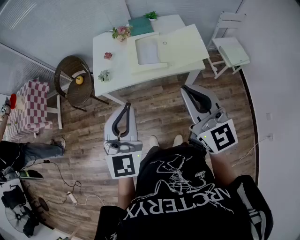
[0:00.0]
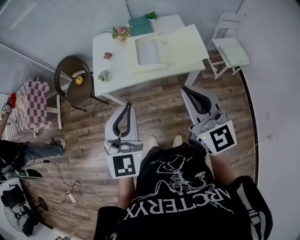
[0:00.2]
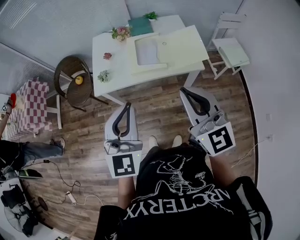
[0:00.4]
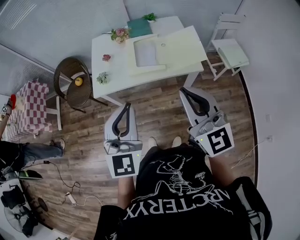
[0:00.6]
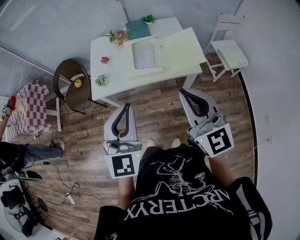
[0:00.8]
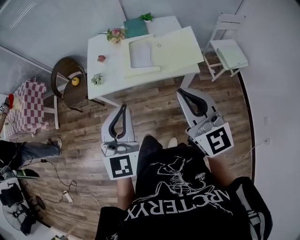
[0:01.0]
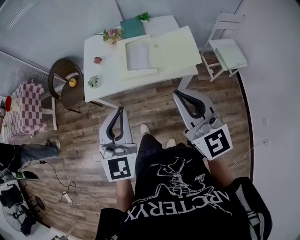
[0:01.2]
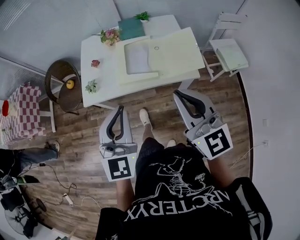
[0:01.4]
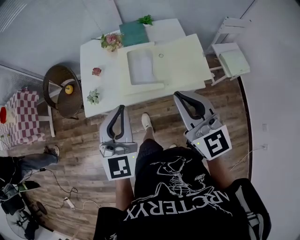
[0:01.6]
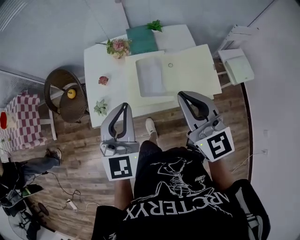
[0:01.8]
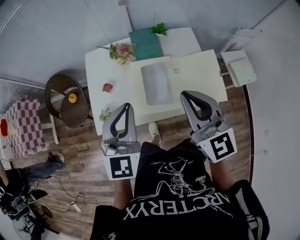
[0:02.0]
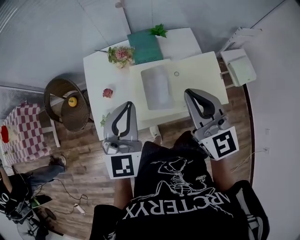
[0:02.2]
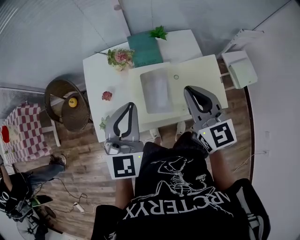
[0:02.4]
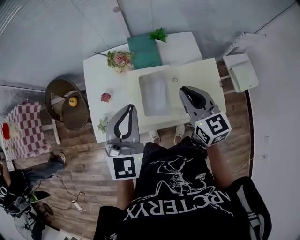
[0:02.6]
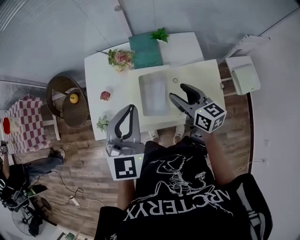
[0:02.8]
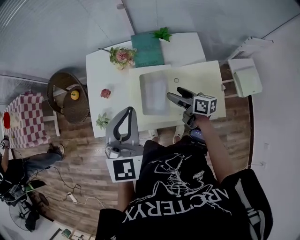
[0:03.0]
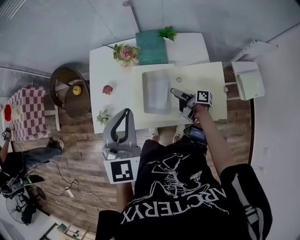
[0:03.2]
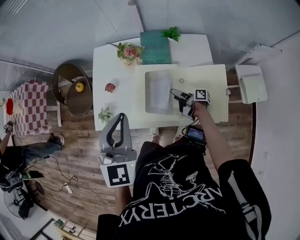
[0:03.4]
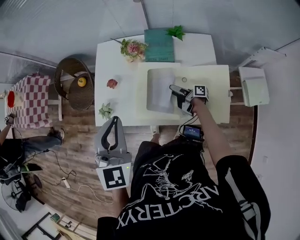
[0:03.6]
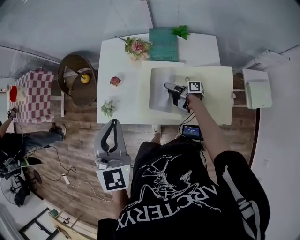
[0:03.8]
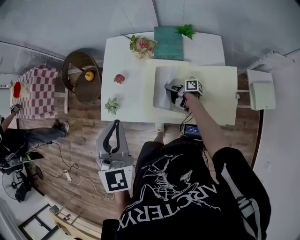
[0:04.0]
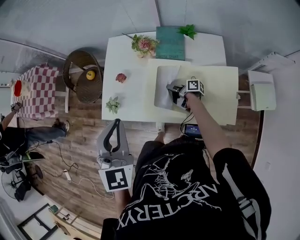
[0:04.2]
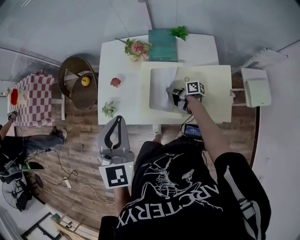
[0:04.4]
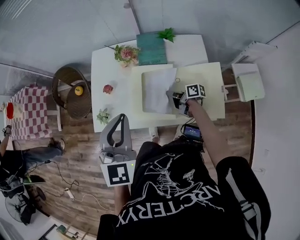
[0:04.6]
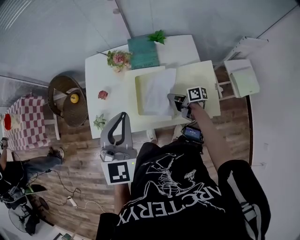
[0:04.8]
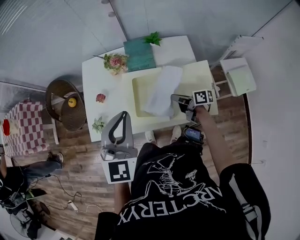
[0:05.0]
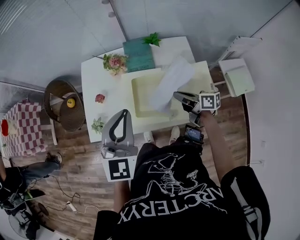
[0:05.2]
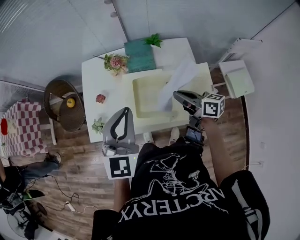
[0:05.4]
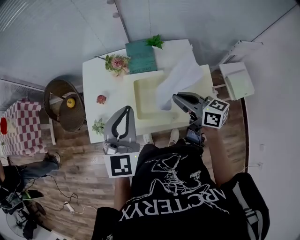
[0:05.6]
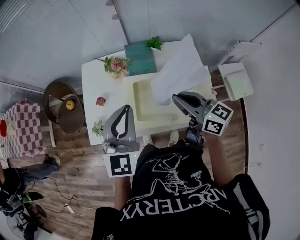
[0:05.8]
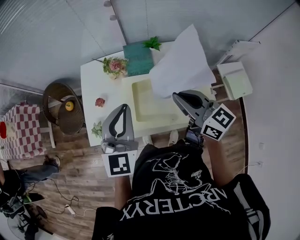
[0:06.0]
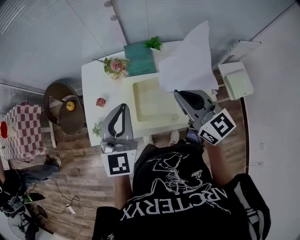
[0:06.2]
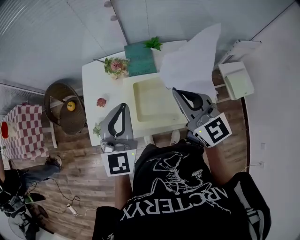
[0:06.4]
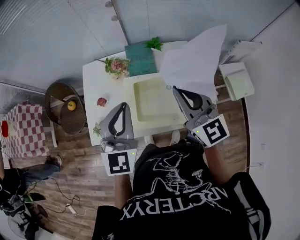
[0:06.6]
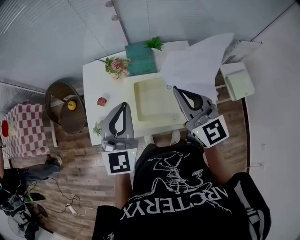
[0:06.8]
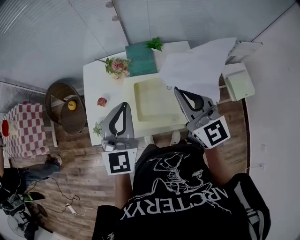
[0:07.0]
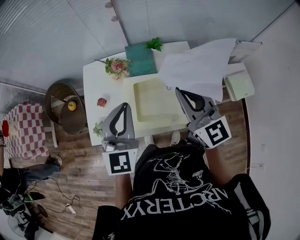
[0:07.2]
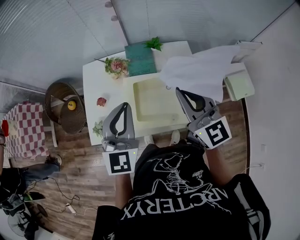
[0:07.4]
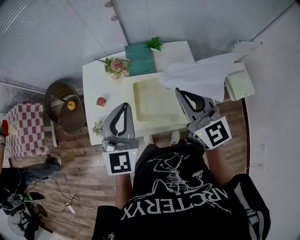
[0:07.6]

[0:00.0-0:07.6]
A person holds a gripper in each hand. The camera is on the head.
0:00.0 to 0:01.6: Both grippers travel together forward, about 15 cm.
0:01.6 to 0:03.0: The right gripper goes roughly 35 cm forward and downward, rotates around the line of its fingers by roughly 60 degrees, clockwise from behind, and opens. The left gripper heads forward, covering roughly 20 cm.
0:03.0 to 0:04.6: The right gripper goes some 10 cm downward, rotates approximately 30 degrees, and closes its fingers.
0:04.6 to 0:06.0: The left gripper changes place by approximately 5 cm, while the right gripper shifts approximately 35 cm upward, and twists roughly 60 degrees counterclockwise, seen from behind.
0:06.0 to 0:07.6: The right gripper turns by approximately 30 degrees.

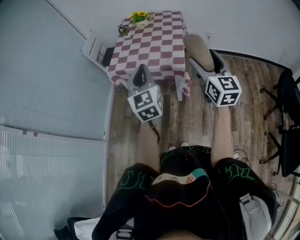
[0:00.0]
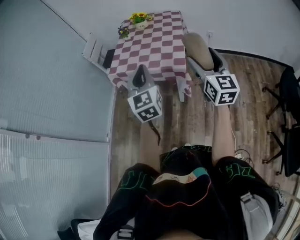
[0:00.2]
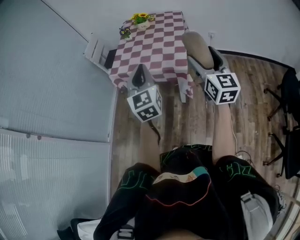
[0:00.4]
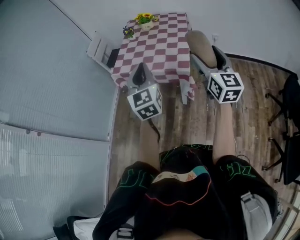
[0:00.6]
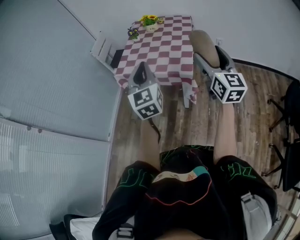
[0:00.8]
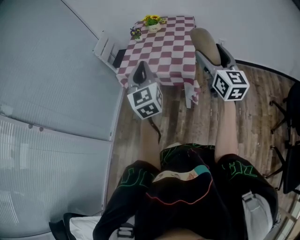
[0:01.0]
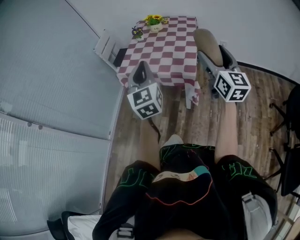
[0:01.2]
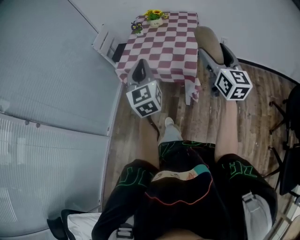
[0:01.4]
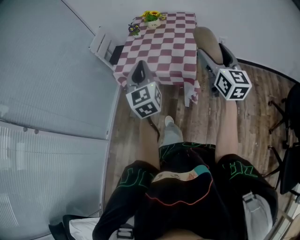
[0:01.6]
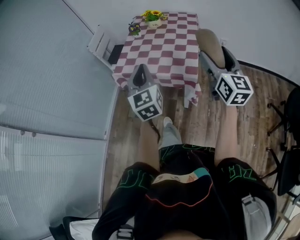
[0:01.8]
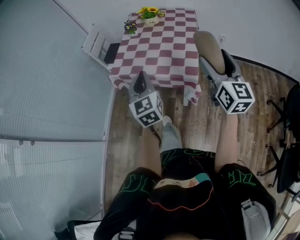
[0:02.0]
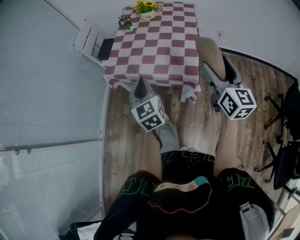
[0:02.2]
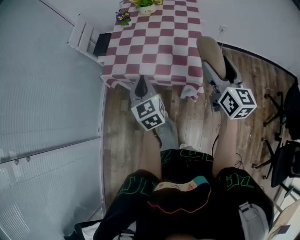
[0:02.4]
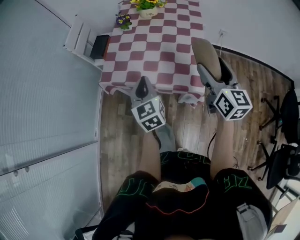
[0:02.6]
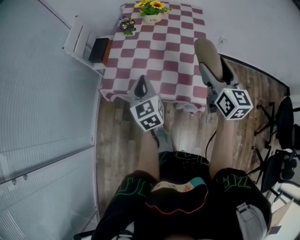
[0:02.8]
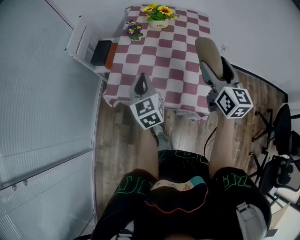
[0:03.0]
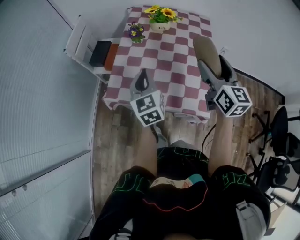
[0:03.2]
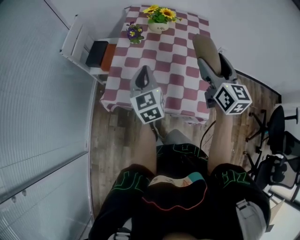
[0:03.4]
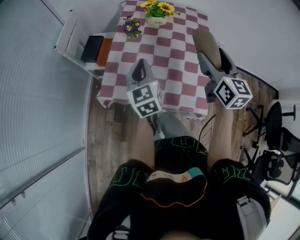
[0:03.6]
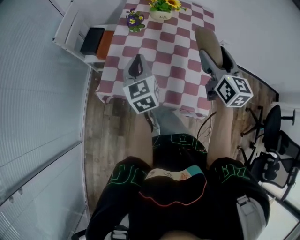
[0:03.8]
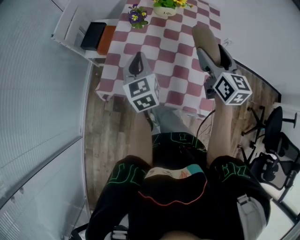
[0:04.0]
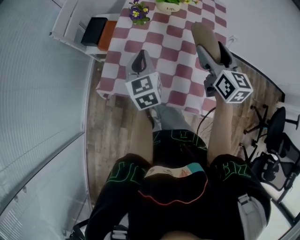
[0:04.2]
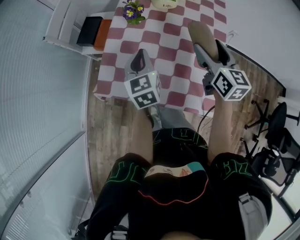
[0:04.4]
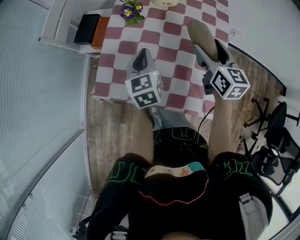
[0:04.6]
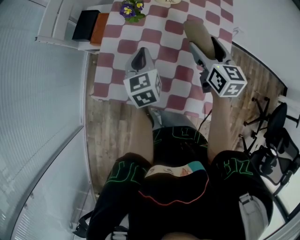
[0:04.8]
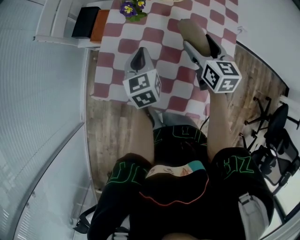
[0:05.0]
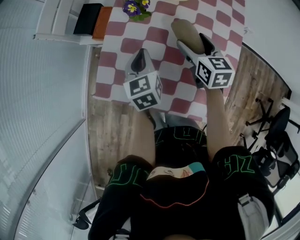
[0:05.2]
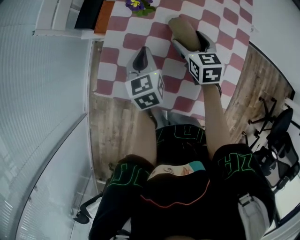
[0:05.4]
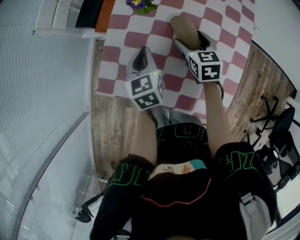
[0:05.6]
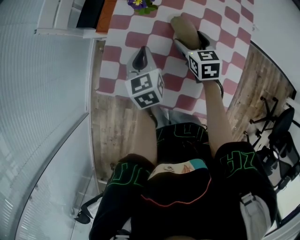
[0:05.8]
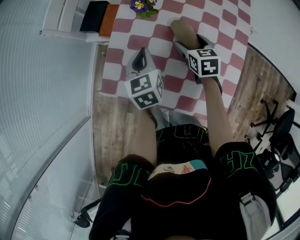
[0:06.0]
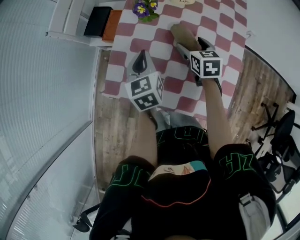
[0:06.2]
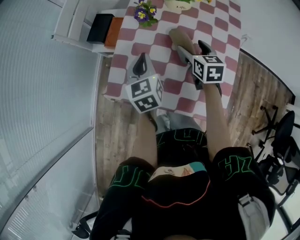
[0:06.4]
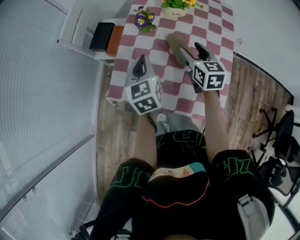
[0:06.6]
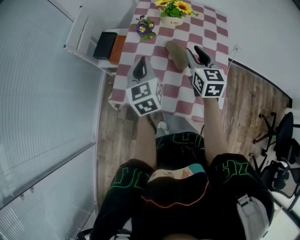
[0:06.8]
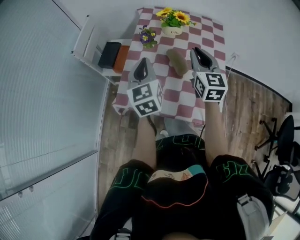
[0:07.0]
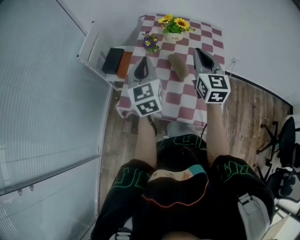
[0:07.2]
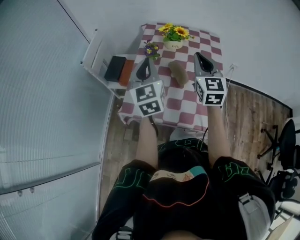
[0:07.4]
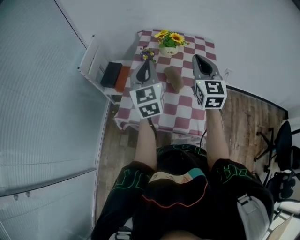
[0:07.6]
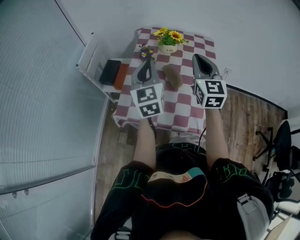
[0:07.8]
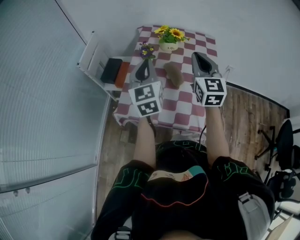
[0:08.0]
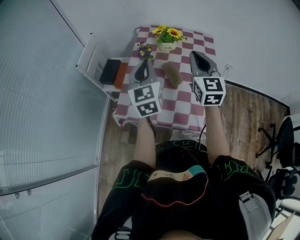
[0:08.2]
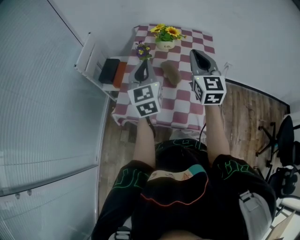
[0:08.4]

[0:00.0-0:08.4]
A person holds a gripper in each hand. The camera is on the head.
0:00.0 to 0:01.4: The right gripper heads forward, covering about 5 cm. The left gripper moves some 5 cm.
0:01.4 to 0:02.8: The right gripper heads forward, covering approximately 25 cm; the left gripper goes about 30 cm forward and downward, and changes its angle by about 20 degrees.
0:02.8 to 0:04.2: Both grippers travel together forward, approximately 15 cm.
0:04.2 to 0:05.6: The right gripper is displaced downward and forward by roughly 25 cm, and changes its angle by about 30 degrees, while the left gripper goes approximately 10 cm downward.
0:05.6 to 0:07.0: The two grippers go some 20 cm upward. The right gripper tips its fingers upward by roughly 30 degrees, and closes its fingers, while the left gripper swivels roughly 20 degrees.
0:07.0 to 0:08.4: The grippers both shift upward by some 5 cm.

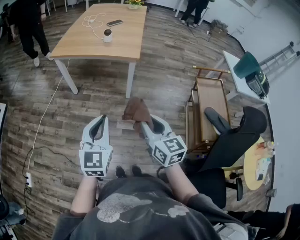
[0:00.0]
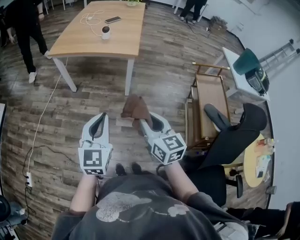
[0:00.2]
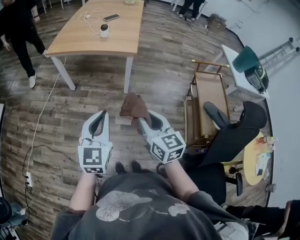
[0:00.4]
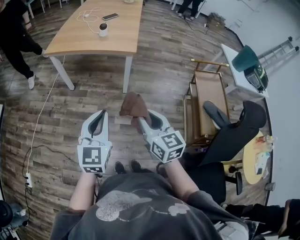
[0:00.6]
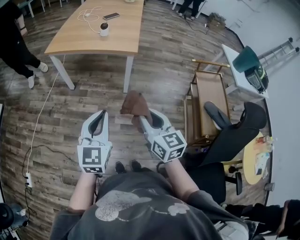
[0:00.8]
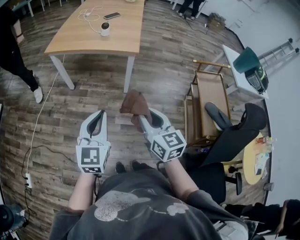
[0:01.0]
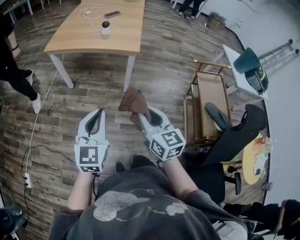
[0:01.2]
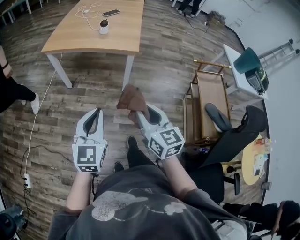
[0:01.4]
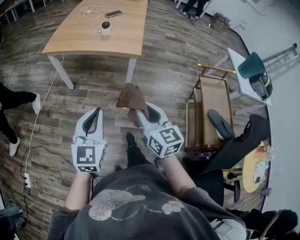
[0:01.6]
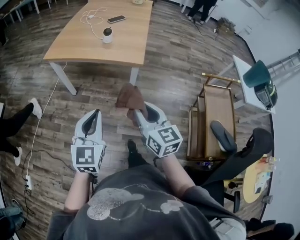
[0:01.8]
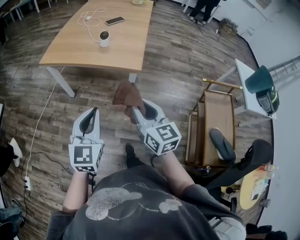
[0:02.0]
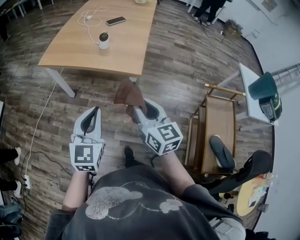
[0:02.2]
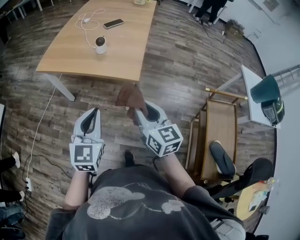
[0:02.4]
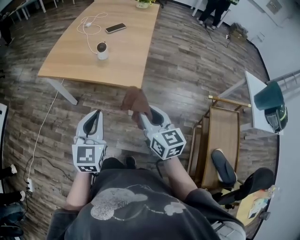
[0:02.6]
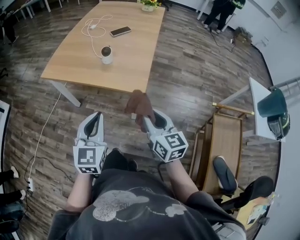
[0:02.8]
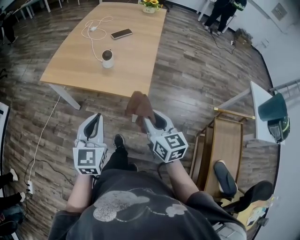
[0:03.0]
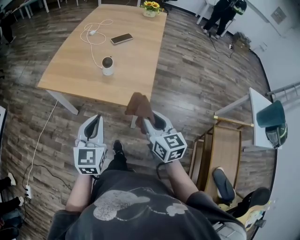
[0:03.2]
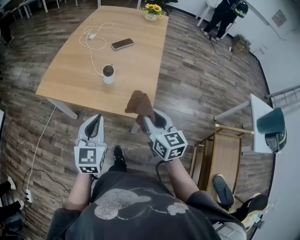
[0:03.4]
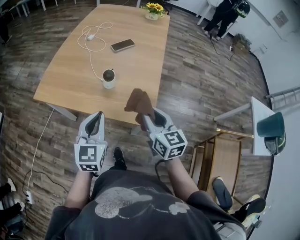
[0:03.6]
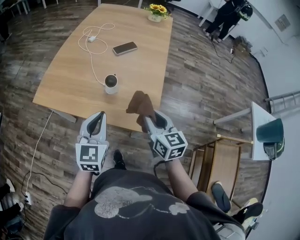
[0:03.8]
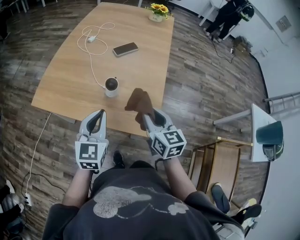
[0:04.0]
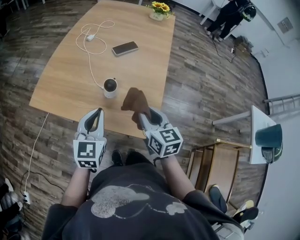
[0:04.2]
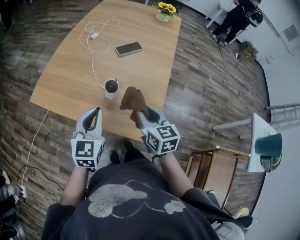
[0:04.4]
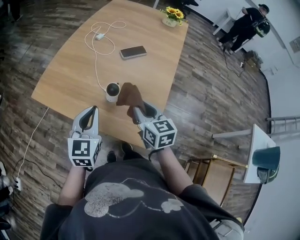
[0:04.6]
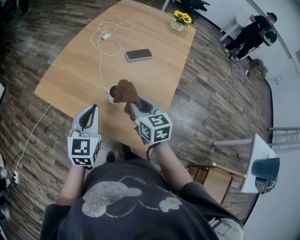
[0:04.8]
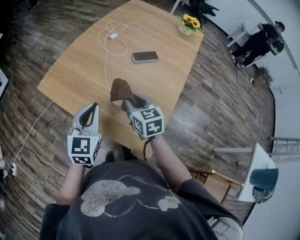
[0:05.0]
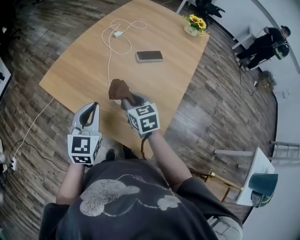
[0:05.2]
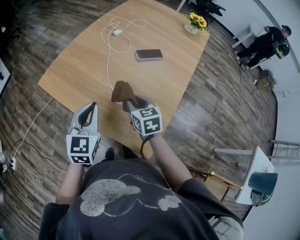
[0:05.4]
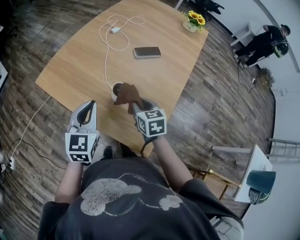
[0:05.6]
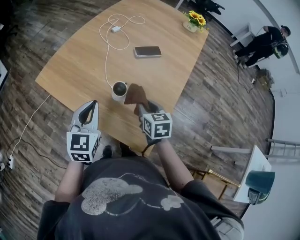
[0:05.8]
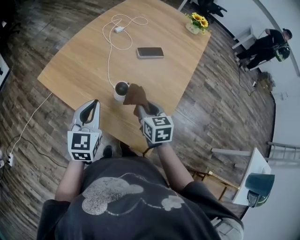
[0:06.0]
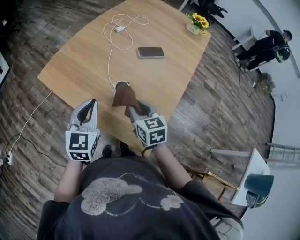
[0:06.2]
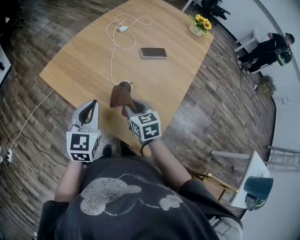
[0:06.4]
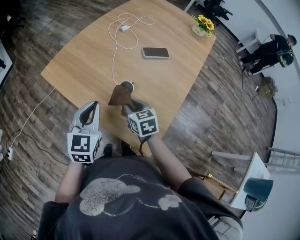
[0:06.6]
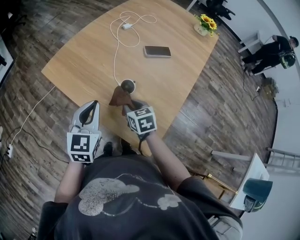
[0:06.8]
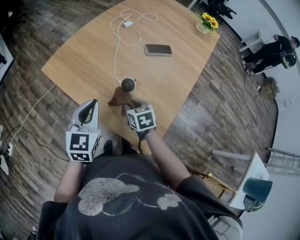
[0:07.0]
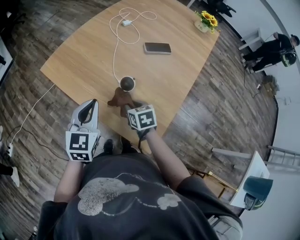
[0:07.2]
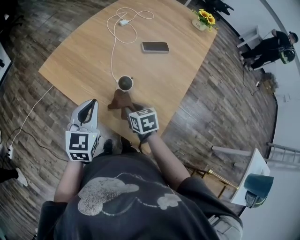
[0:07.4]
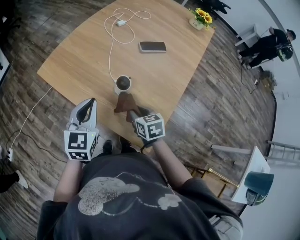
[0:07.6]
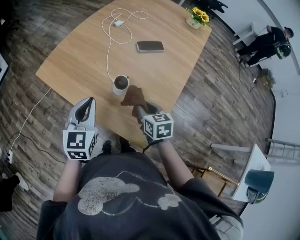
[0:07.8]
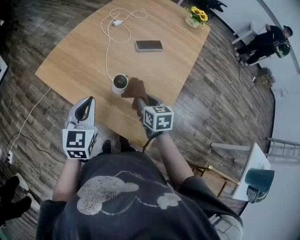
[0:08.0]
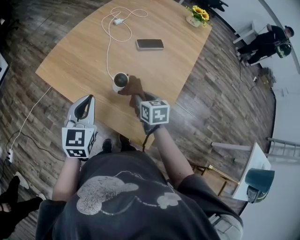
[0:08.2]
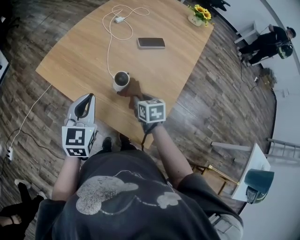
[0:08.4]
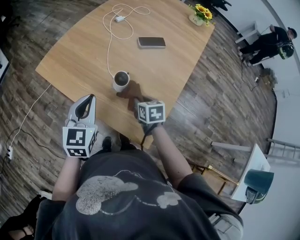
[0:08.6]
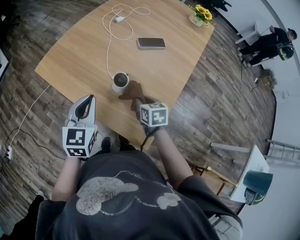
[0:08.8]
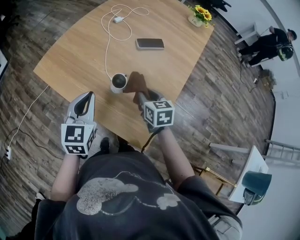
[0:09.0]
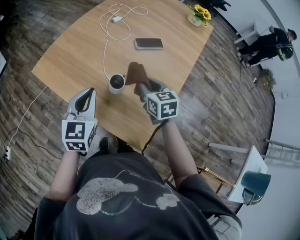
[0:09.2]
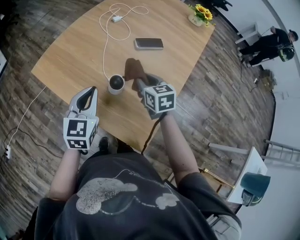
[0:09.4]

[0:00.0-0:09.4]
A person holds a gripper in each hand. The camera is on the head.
0:00.0 to 0:01.6: The grippers both shift forward by about 10 cm.
0:01.6 to 0:03.2: Both grippers travel together forward, about 30 cm.
0:03.2 to 0:04.8: The two grippers go roughly 25 cm forward.
0:04.8 to 0:06.2: The right gripper moves left and right over some 10 cm, changing direction 2 times.
0:07.8 to 0:09.4: The right gripper moves forward, roughly 10 cm. Meanwhile the left gripper shifts by roughly 5 cm.
